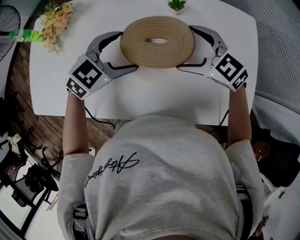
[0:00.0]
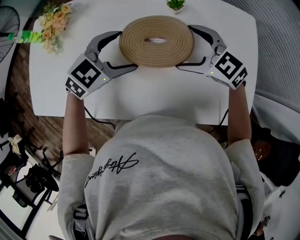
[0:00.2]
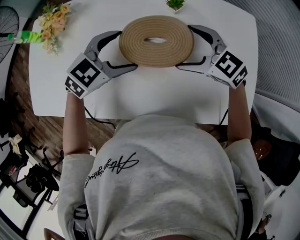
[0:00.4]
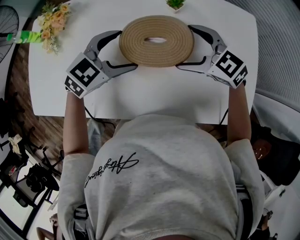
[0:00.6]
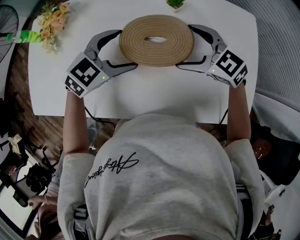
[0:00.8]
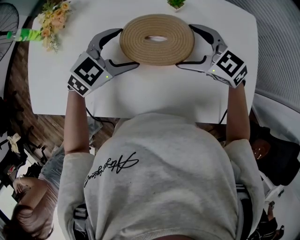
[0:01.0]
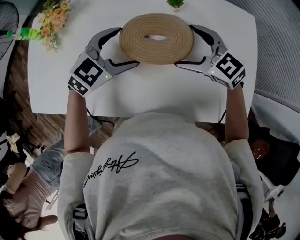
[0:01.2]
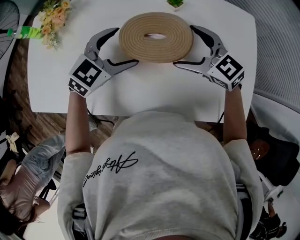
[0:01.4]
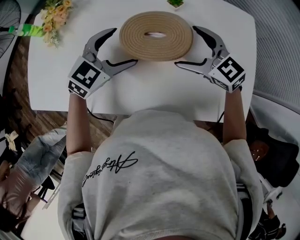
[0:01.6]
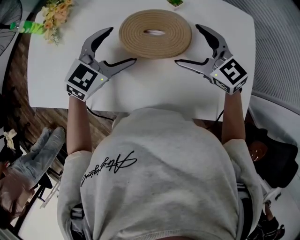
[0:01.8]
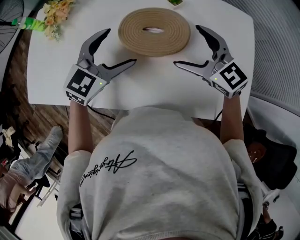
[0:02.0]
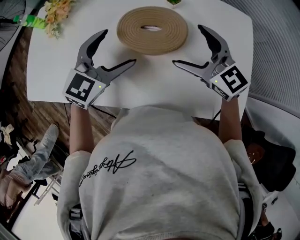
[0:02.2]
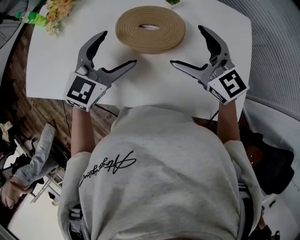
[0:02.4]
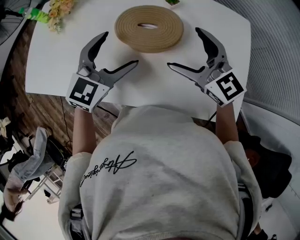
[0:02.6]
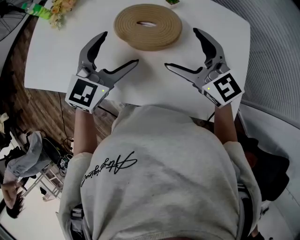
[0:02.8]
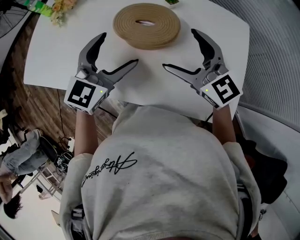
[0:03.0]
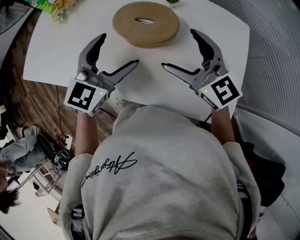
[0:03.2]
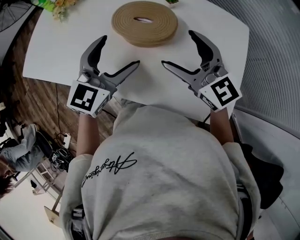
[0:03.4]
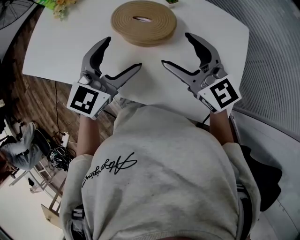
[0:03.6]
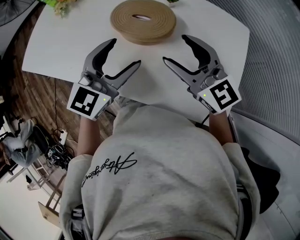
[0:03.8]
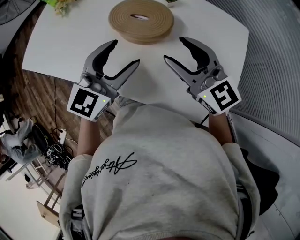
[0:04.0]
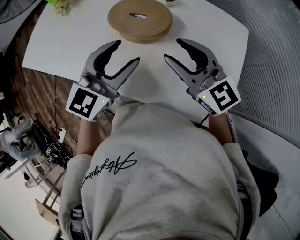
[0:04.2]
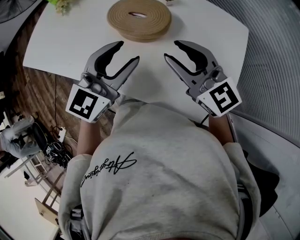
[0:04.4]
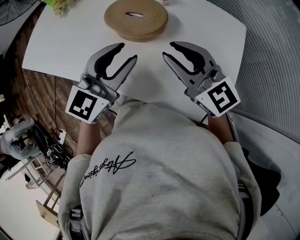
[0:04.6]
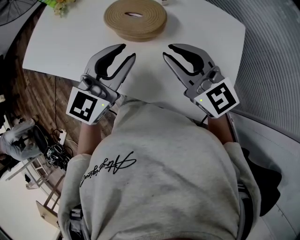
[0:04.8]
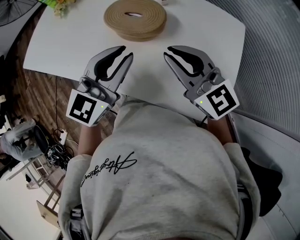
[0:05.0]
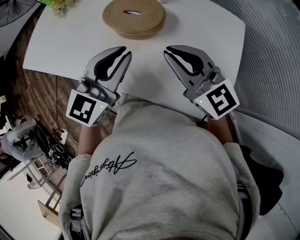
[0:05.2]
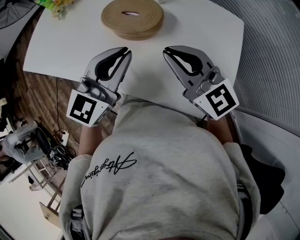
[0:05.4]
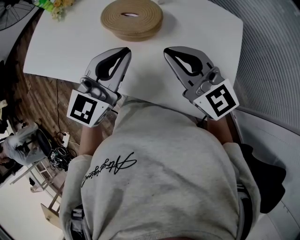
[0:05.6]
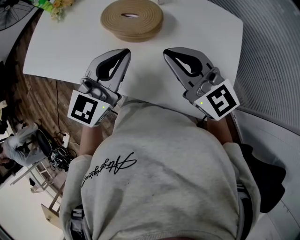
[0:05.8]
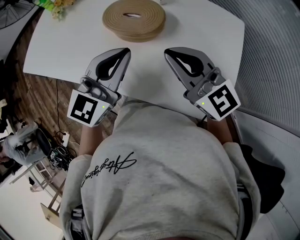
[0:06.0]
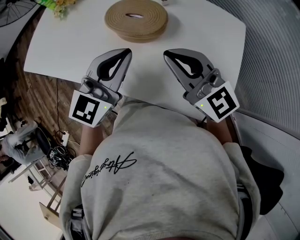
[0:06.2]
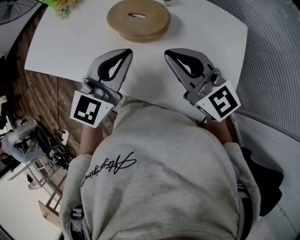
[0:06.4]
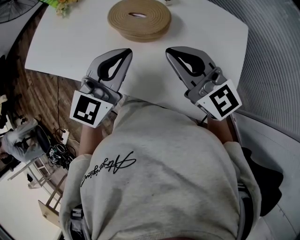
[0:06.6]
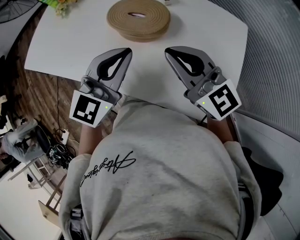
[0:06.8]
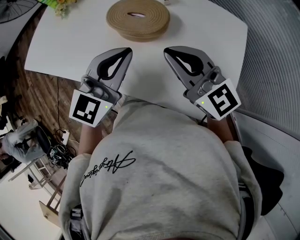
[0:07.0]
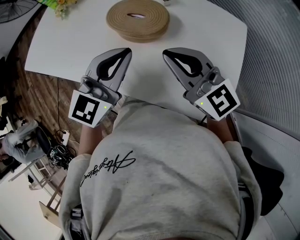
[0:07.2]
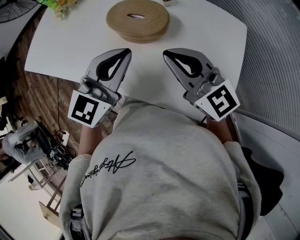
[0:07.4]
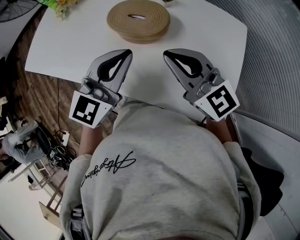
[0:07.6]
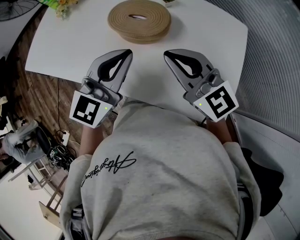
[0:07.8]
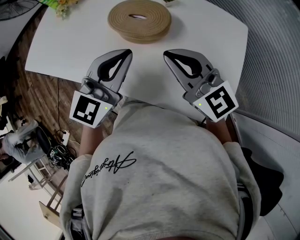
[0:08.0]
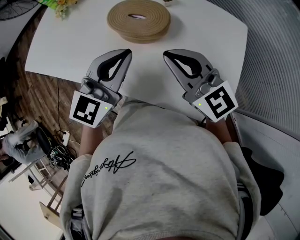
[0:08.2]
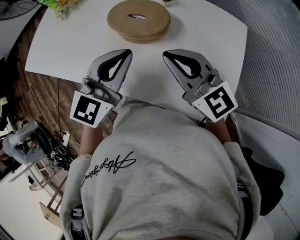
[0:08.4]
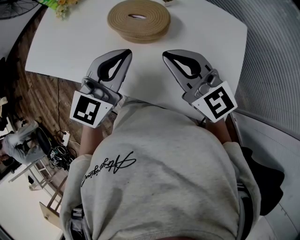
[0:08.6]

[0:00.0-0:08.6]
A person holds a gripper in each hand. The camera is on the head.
0.0 to 1.4 s: There are only small adjustments of the grippers.
1.4 to 2.8 s: The right gripper shifts roughly 10 cm upward and backward, while the left gripper shifts about 10 cm backward and upward, and swivels roughly 30 degrees.
2.8 to 4.4 s: The left gripper travels backward and to the right by about 10 cm, and closes. Meanwhile the right gripper moves backward, roughly 5 cm, and closes its fingers.
4.4 to 5.8 s: The left gripper closes.
5.8 to 7.2 s: The grippers stay close to where they were, moving slightly.
7.2 to 8.6 s: Neither gripper changes place.

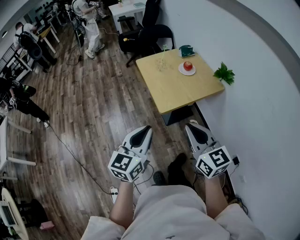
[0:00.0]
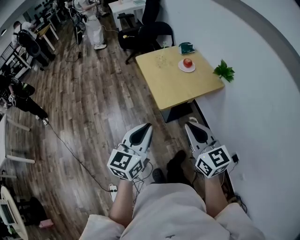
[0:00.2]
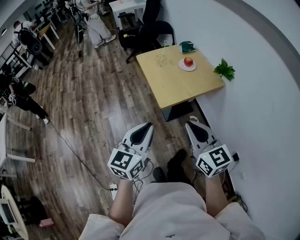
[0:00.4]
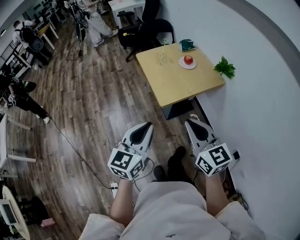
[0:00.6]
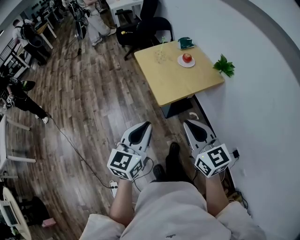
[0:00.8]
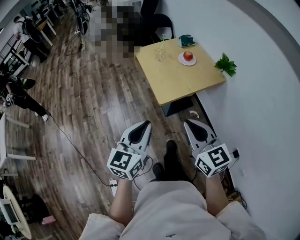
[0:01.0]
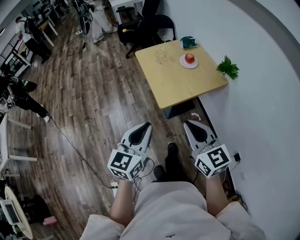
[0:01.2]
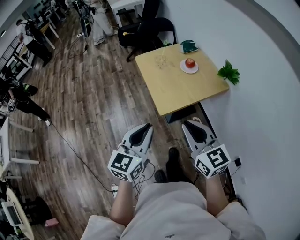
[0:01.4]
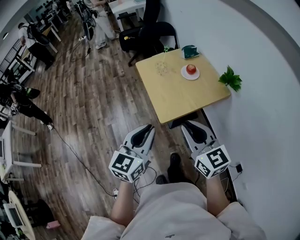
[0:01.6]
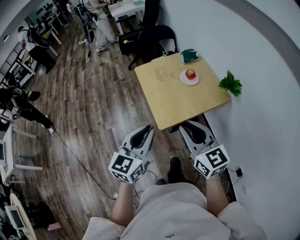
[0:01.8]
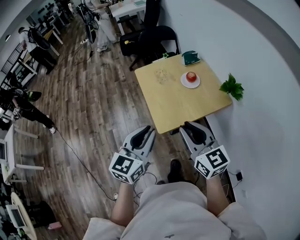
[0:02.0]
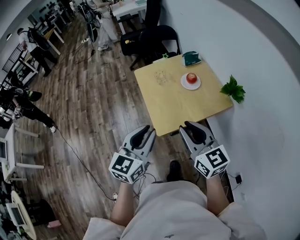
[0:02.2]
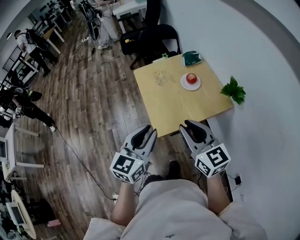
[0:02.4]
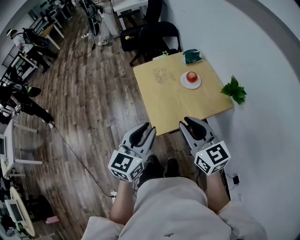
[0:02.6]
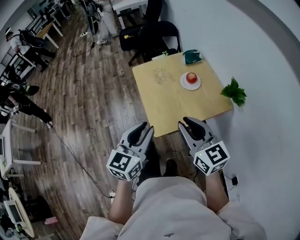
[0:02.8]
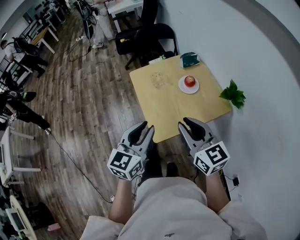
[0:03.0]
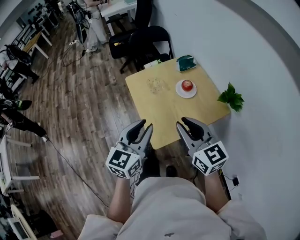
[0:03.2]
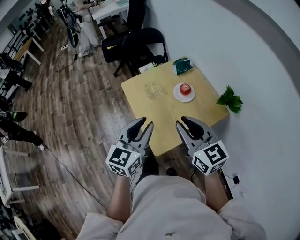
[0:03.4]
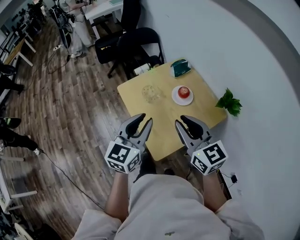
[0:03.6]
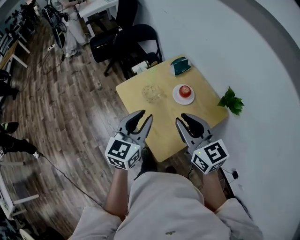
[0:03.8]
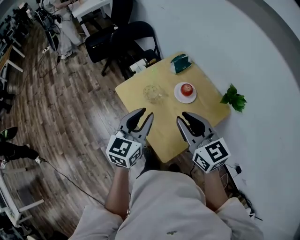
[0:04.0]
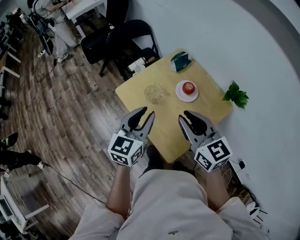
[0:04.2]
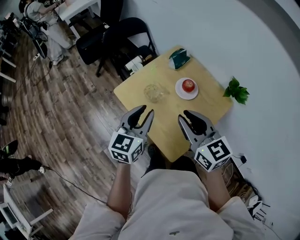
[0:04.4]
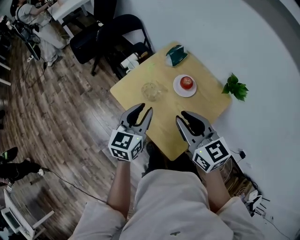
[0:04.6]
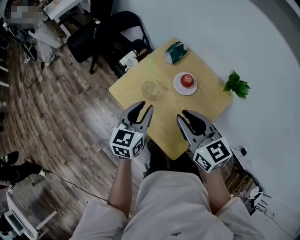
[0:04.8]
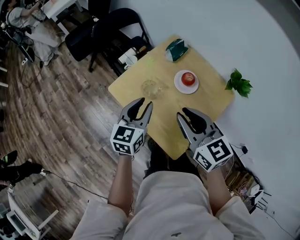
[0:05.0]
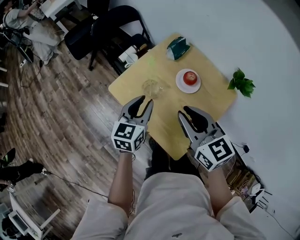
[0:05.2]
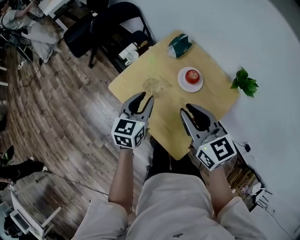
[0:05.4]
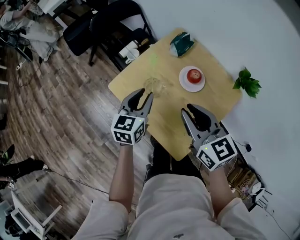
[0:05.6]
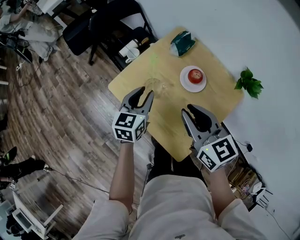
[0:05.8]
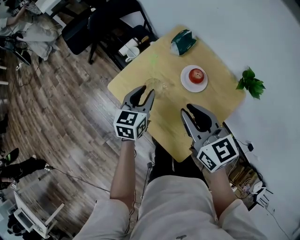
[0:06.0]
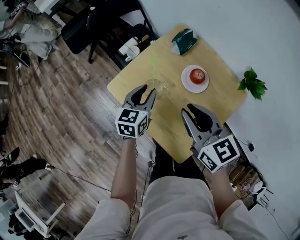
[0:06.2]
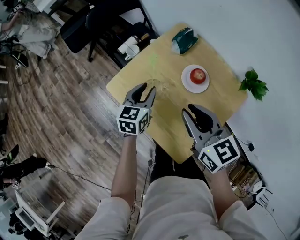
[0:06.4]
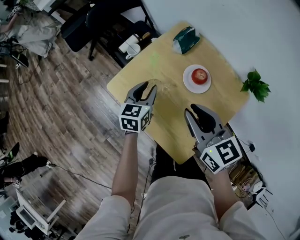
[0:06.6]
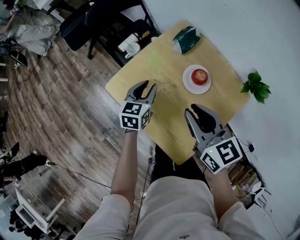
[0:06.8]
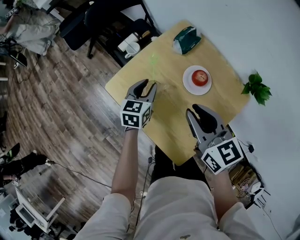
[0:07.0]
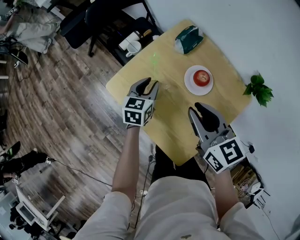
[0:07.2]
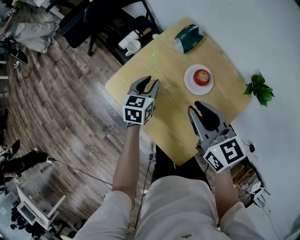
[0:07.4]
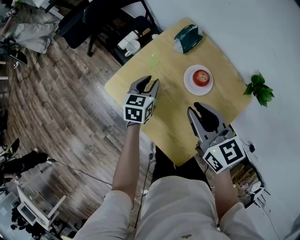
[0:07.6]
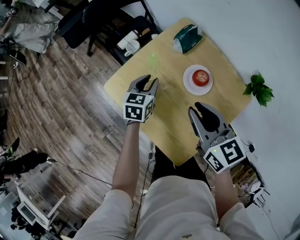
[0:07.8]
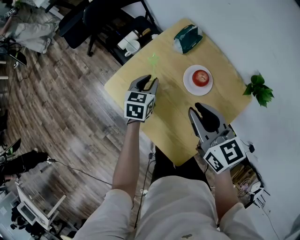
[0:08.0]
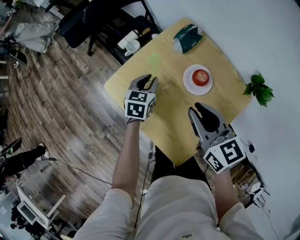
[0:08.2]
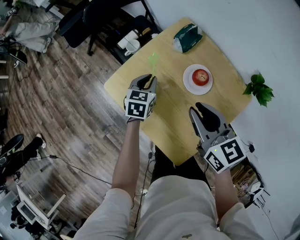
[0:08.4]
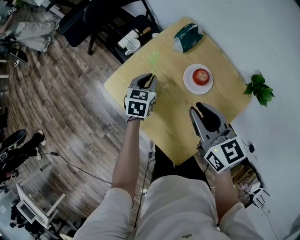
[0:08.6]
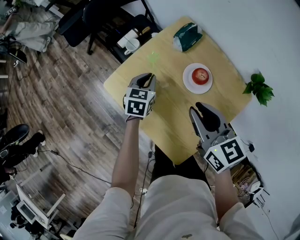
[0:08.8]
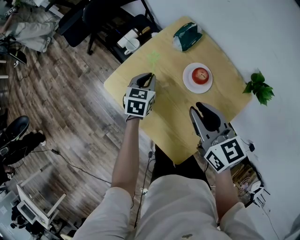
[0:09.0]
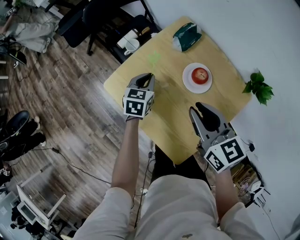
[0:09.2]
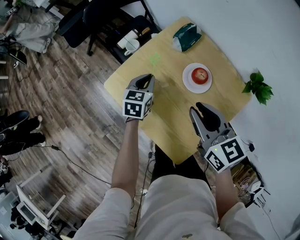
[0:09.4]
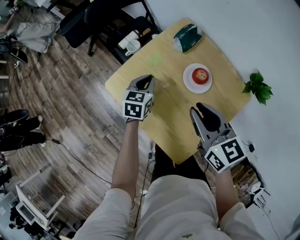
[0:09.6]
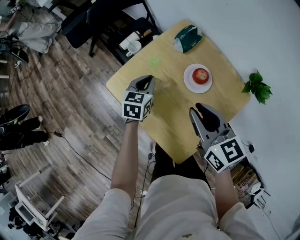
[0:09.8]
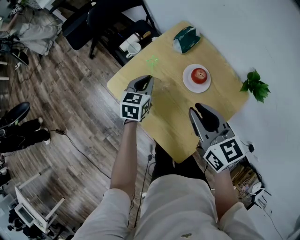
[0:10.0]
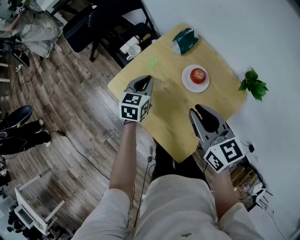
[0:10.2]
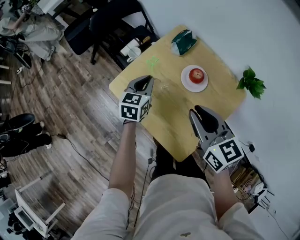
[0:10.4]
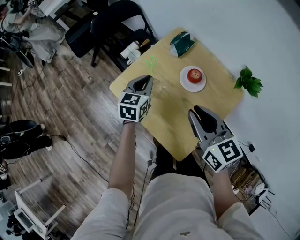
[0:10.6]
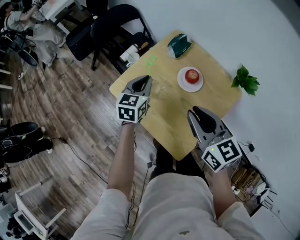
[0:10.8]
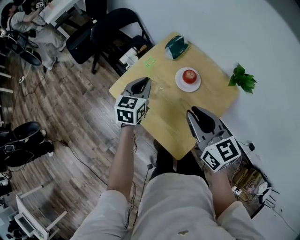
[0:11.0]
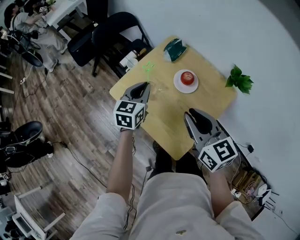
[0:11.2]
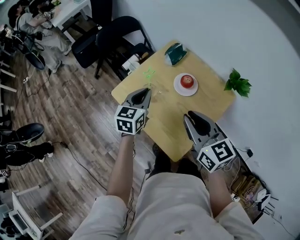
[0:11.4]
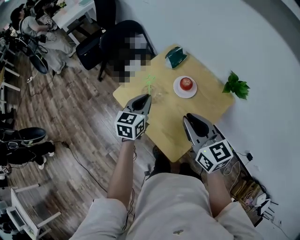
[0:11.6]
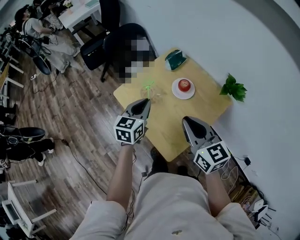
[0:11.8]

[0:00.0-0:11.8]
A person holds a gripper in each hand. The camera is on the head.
0.0 to 1.4 s: Both grippers travel together forward, about 5 cm.
1.4 to 3.0 s: The two grippers go roughly 20 cm forward.
3.0 to 4.4 s: The left gripper moves forward, about 25 cm. Meanwhile the right gripper shifts some 25 cm forward and to the left, and swivels approximately 20 degrees.
4.4 to 6.0 s: The left gripper goes about 20 cm downward and forward; the right gripper shifts approximately 10 cm forward and downward.
6.0 to 7.4 s: The right gripper is displaced forward by about 5 cm. The left gripper goes some 10 cm downward and forward.
7.4 to 8.8 s: The grippers make only small movements.
8.8 to 10.4 s: The left gripper heads upward, covering approximately 10 cm, while the right gripper goes roughly 5 cm backward.
10.4 to 11.8 s: The right gripper travels backward and upward by roughly 10 cm; the left gripper shifts approximately 20 cm backward and upward.

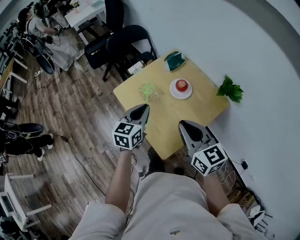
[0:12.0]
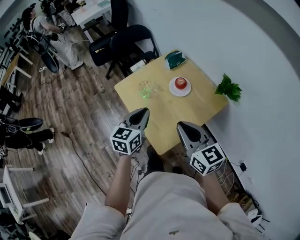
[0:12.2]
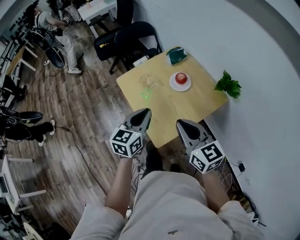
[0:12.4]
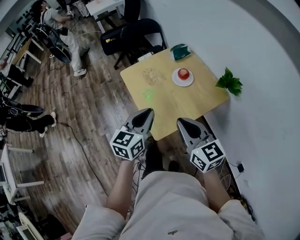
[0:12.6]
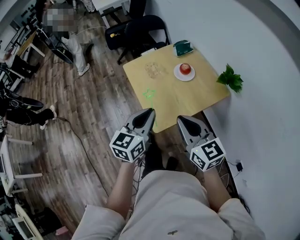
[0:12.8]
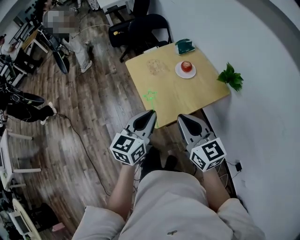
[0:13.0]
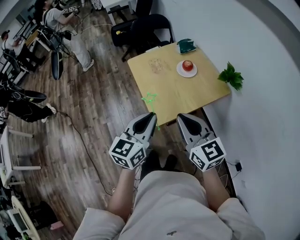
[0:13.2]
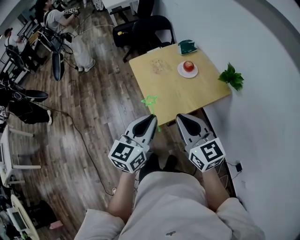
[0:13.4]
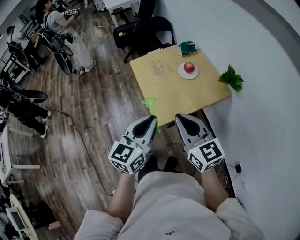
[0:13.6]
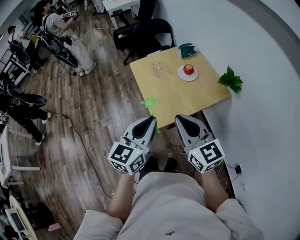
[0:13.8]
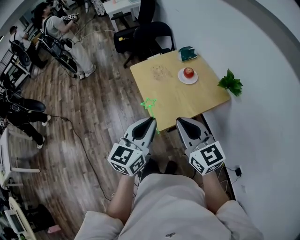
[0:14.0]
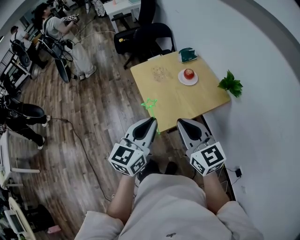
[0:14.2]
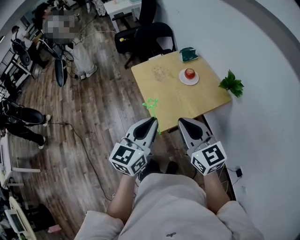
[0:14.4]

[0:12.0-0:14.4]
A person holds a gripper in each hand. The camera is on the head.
12.0 to 13.2 s: The right gripper travels backward by some 20 cm, while the left gripper travels backward by about 30 cm.
13.2 to 14.4 s: The grippers make only small movements.

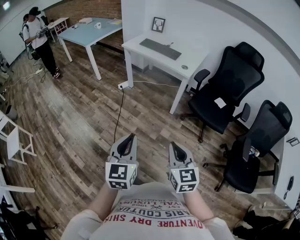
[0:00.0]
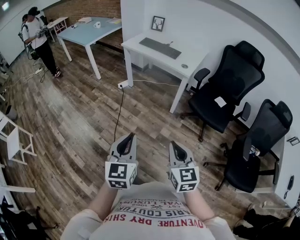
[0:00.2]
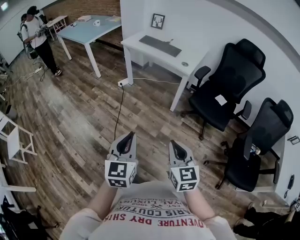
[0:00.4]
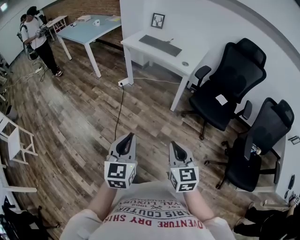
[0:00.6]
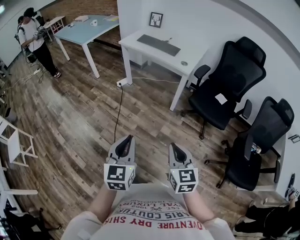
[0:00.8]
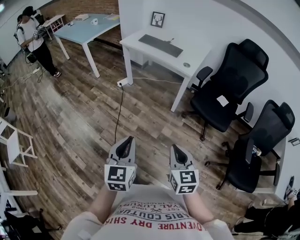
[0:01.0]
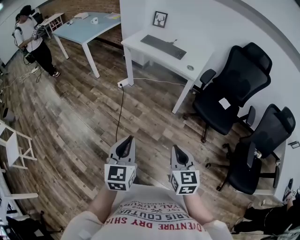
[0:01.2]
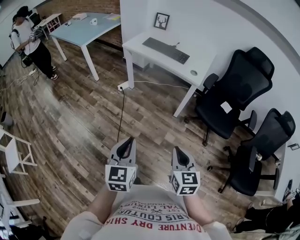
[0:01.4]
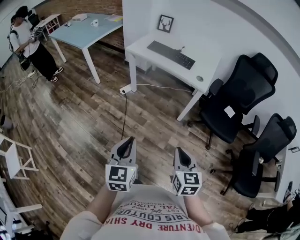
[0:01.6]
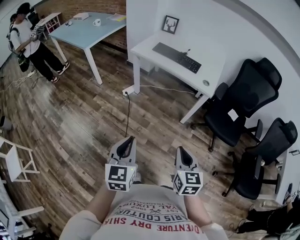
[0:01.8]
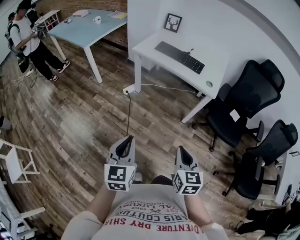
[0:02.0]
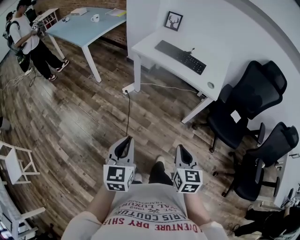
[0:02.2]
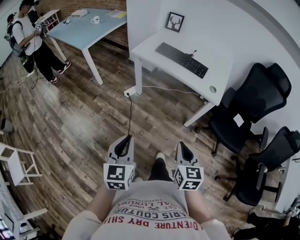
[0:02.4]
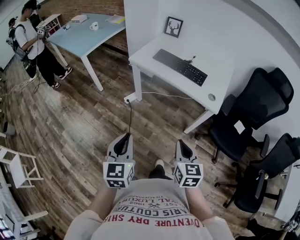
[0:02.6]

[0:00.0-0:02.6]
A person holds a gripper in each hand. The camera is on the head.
0.0 to 1.2 s: The two grippers go some 10 cm forward.
1.2 to 2.6 s: The right gripper moves forward, approximately 30 cm. Meanwhile the left gripper goes some 35 cm forward and to the left.
